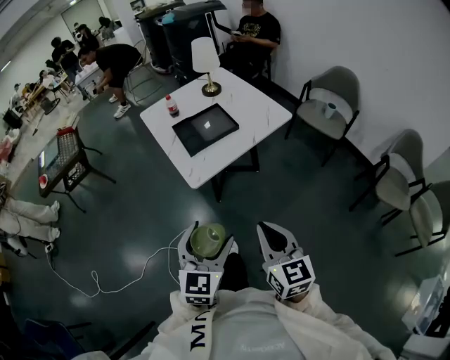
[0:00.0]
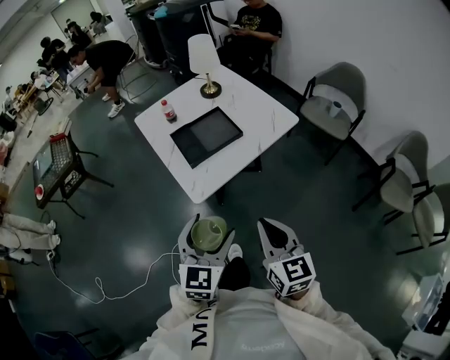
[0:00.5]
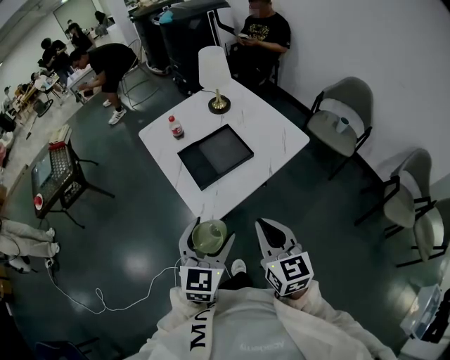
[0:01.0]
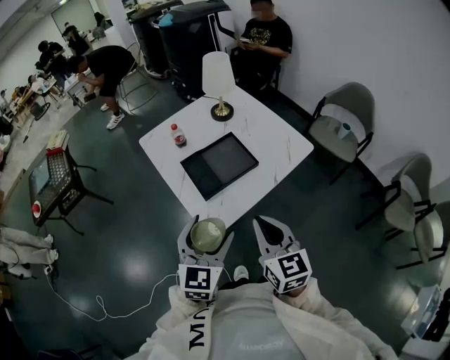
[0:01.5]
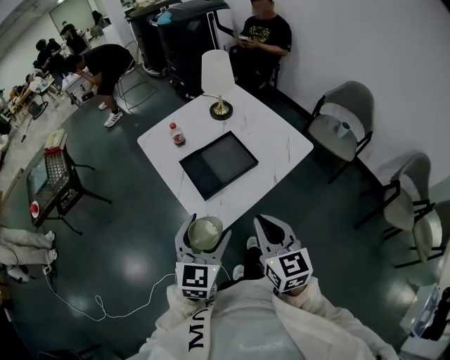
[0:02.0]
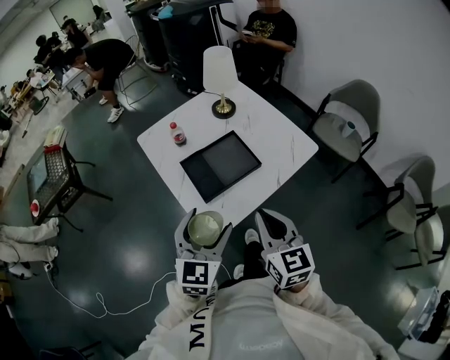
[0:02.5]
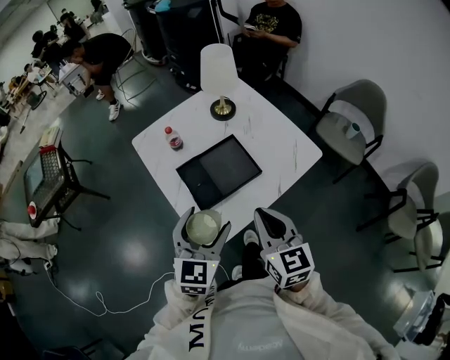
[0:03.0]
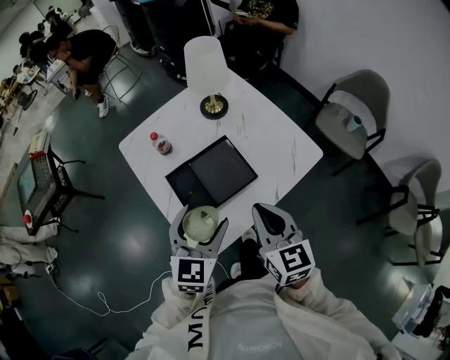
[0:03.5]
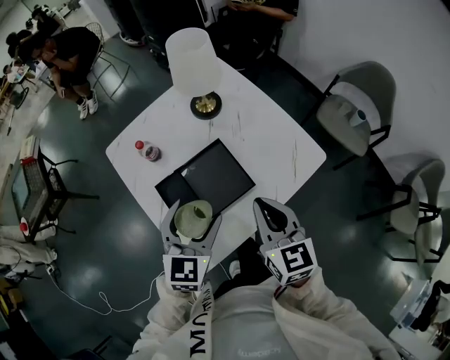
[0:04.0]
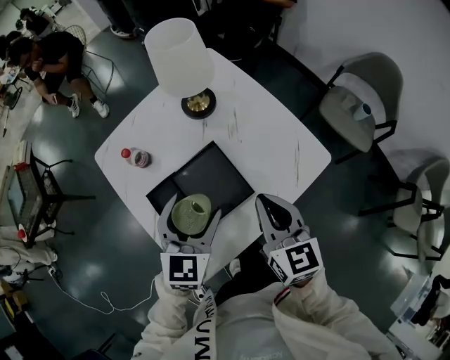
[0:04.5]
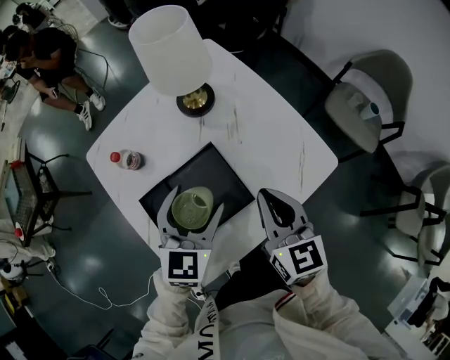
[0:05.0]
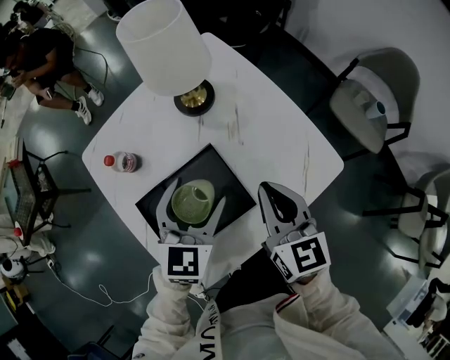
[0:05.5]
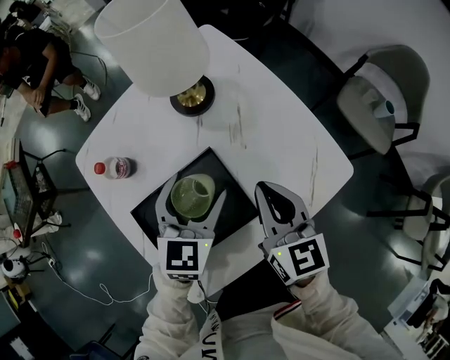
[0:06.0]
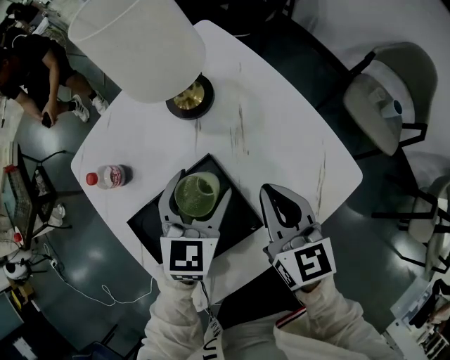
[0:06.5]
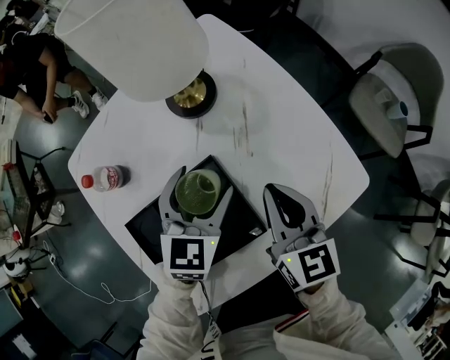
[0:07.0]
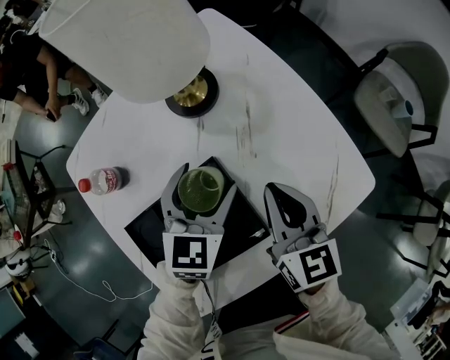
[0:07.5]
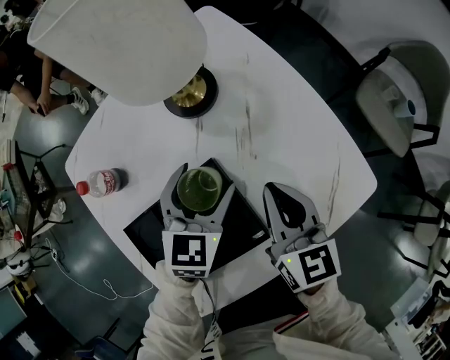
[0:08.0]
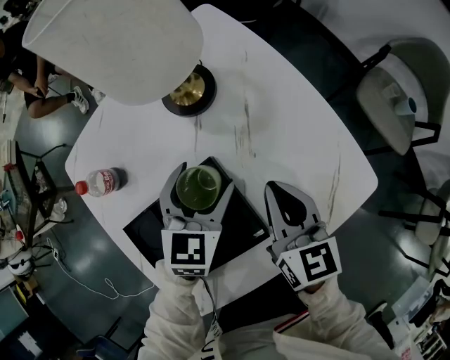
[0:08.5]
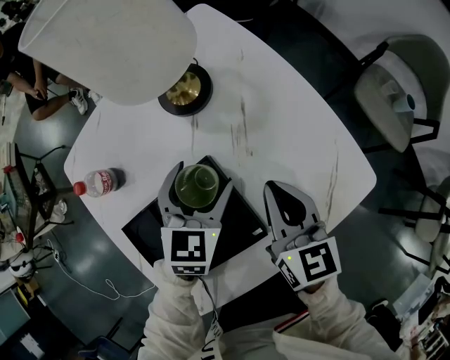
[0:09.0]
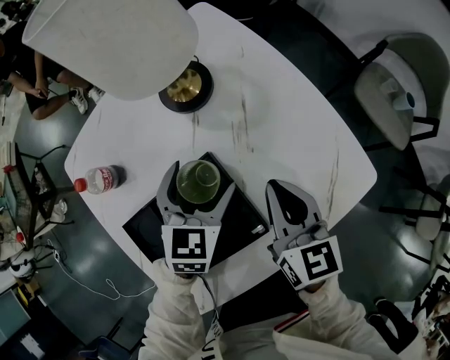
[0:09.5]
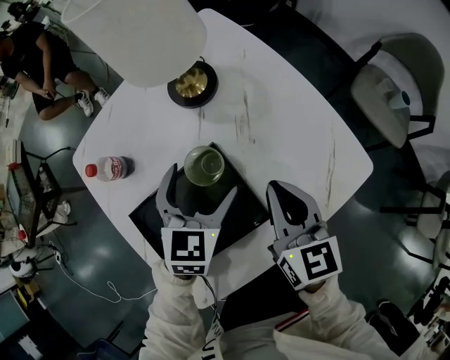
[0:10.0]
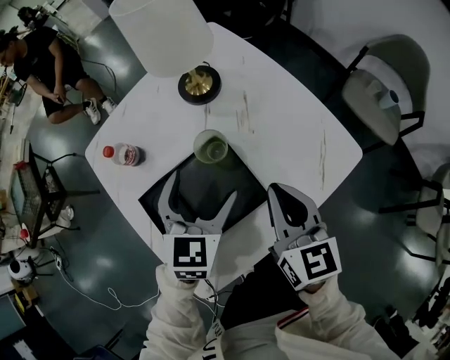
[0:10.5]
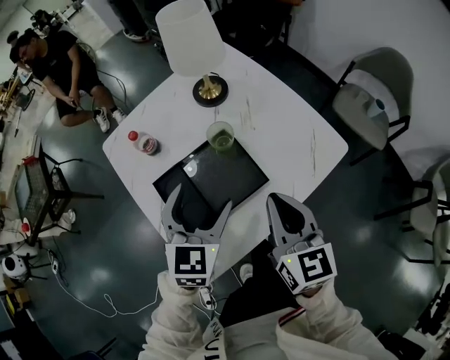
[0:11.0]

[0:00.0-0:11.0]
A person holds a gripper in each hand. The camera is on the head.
0:00.0 to 0:02.0: Both grippers travel together forward, roughly 25 cm.
0:02.0 to 0:03.5: Both grippers travel together forward, roughly 15 cm.
0:03.5 to 0:05.5: The grippers both shift forward and downward by about 20 cm.
0:05.5 to 0:07.5: Both grippers move downward and forward, roughly 10 cm.
0:07.5 to 0:09.0: There are only small adjustments of the grippers.
0:09.0 to 0:11.0: Both grippers travel together backward and upward, about 20 cm.

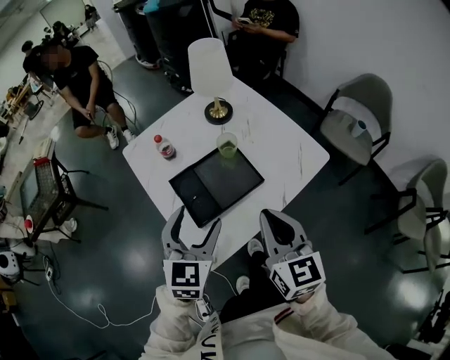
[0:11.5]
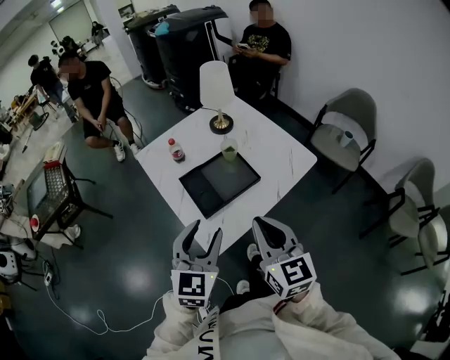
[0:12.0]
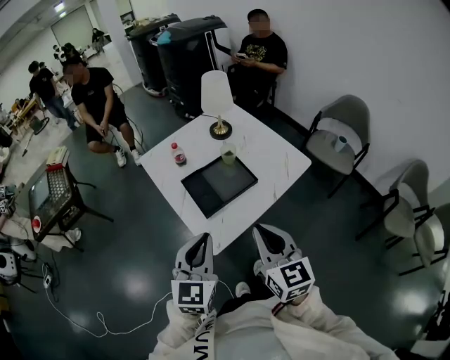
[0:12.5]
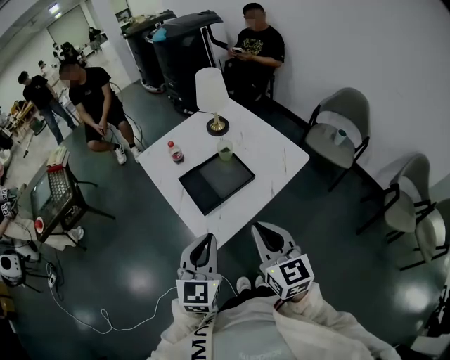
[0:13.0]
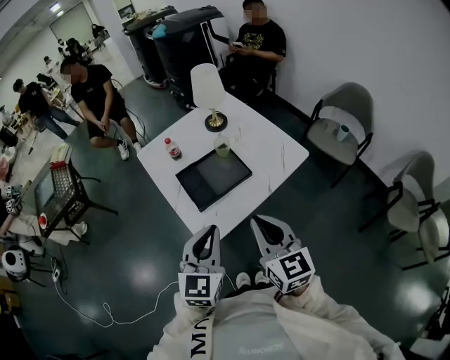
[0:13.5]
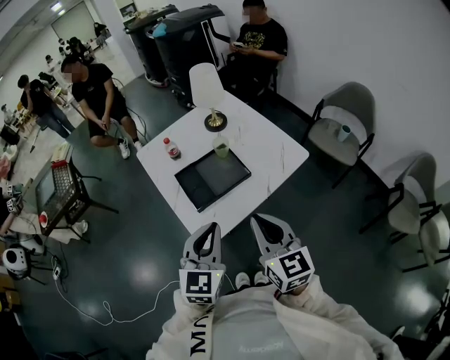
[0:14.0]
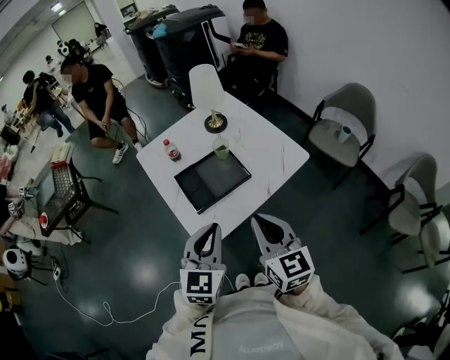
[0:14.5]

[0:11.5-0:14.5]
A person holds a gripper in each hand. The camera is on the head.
0:11.5 to 0:13.0: The two grippers go about 15 cm backward and upward. The left gripper closes its fingers.
0:13.0 to 0:14.5: The left gripper heads to the right, covering about 5 cm. Meanwhile the right gripper ends up roughly 5 cm from where it was.

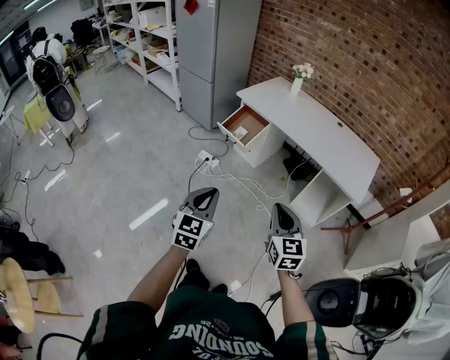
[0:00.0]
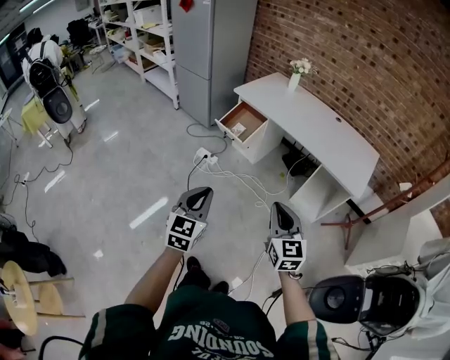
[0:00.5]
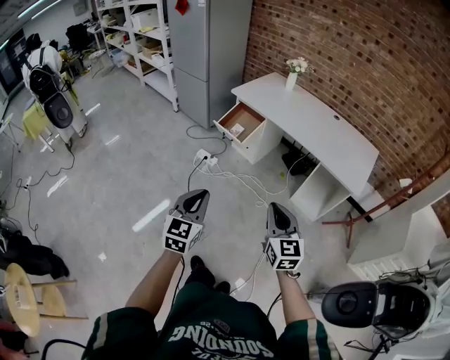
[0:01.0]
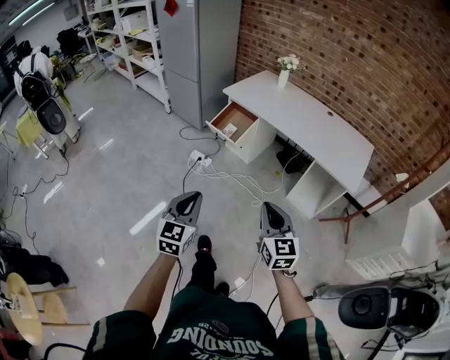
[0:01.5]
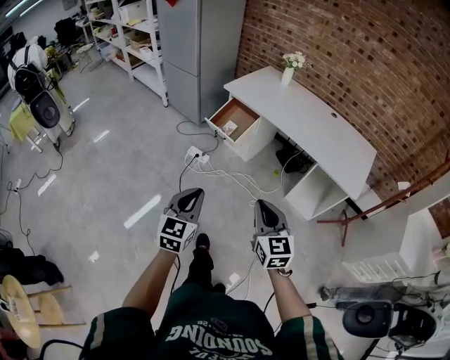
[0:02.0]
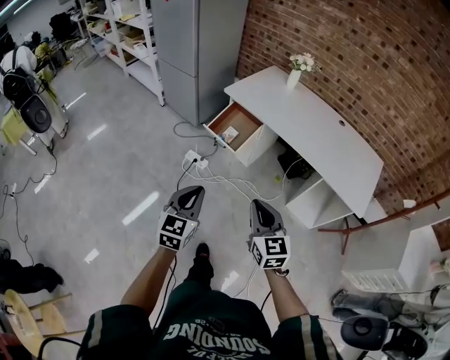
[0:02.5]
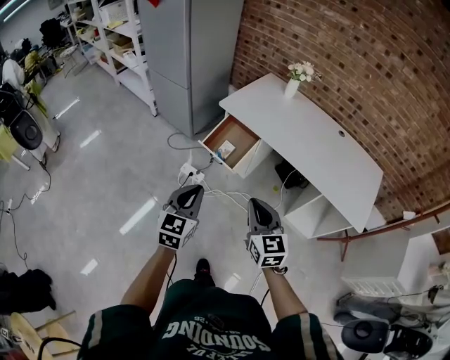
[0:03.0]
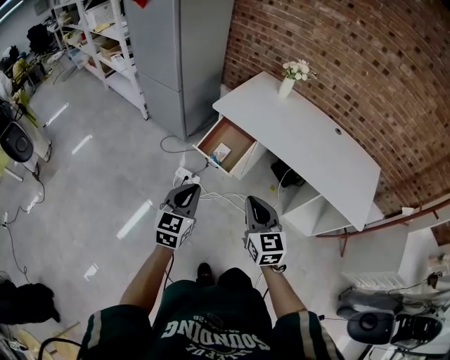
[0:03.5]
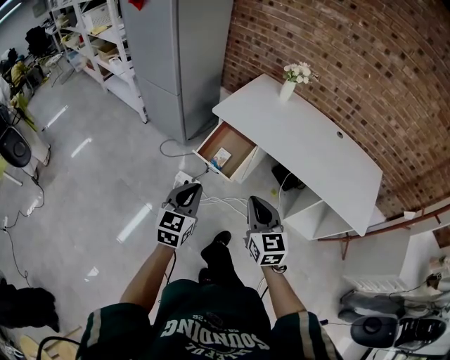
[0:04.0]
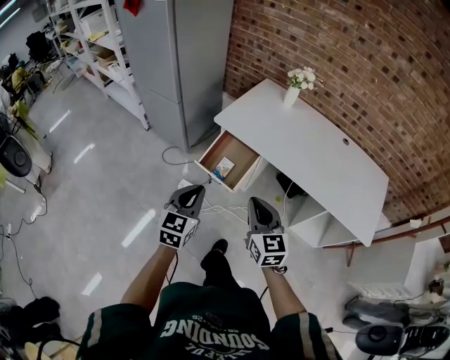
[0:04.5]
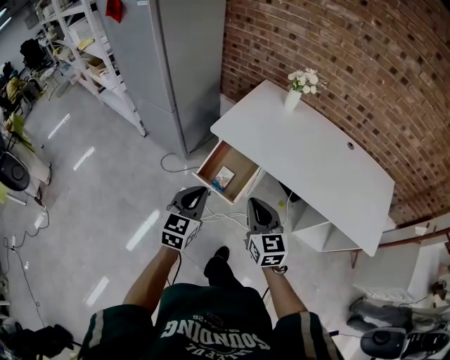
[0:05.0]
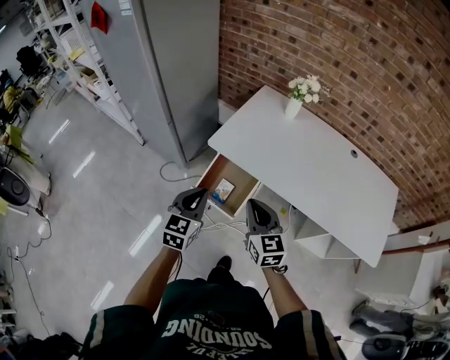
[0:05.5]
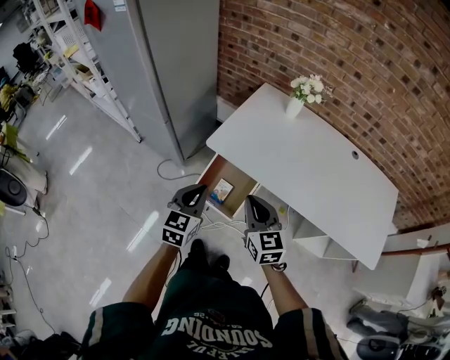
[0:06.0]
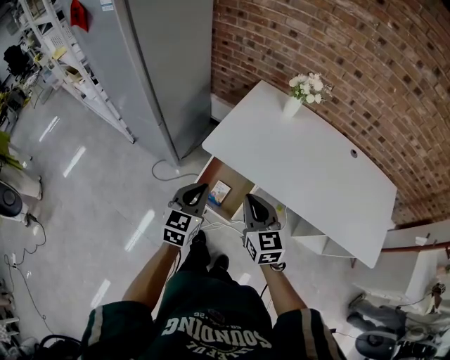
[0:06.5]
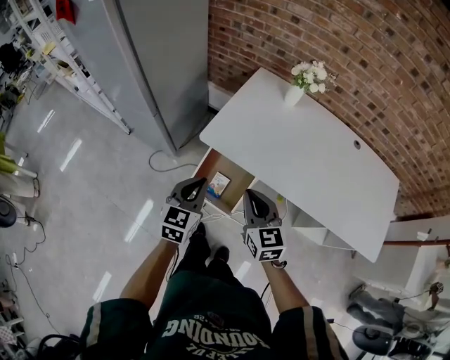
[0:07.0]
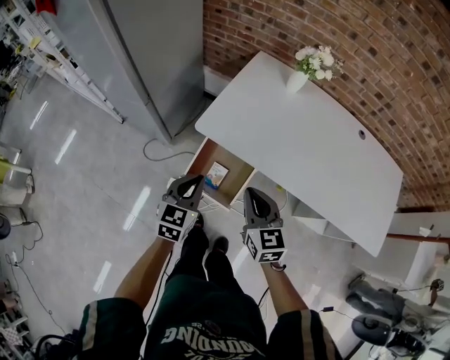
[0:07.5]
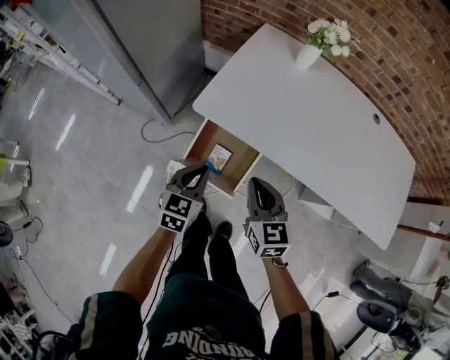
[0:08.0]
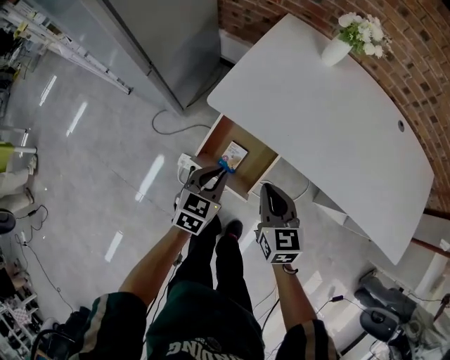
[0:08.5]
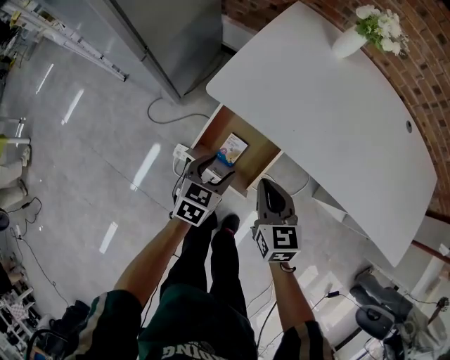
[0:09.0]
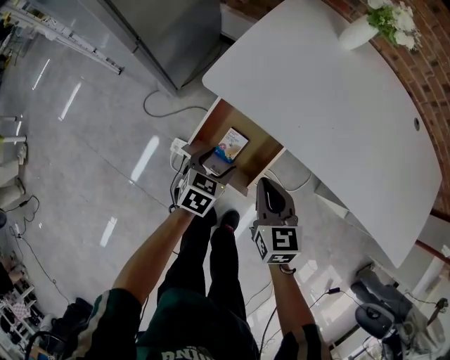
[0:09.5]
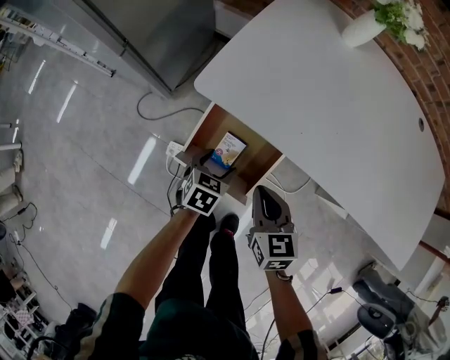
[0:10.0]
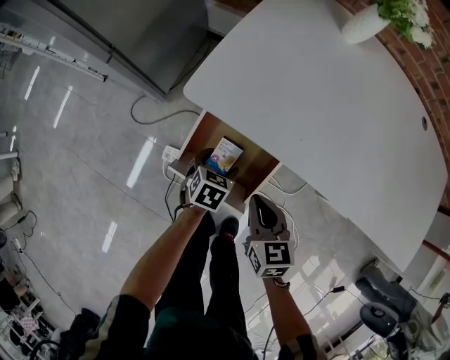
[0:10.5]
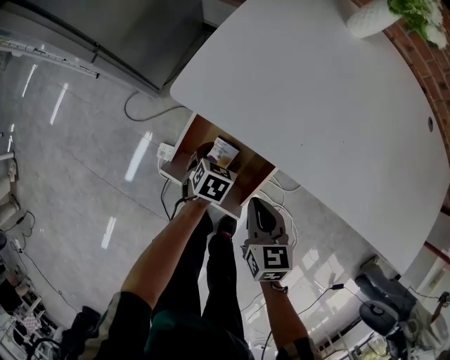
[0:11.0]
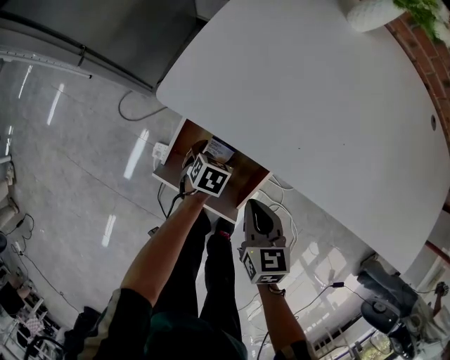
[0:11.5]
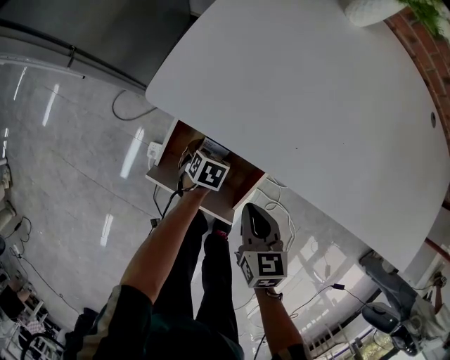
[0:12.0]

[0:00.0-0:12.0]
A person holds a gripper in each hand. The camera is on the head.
0:00.0 to 0:02.0: The right gripper shifts by about 5 cm. The left gripper changes place by approximately 5 cm.
0:02.0 to 0:04.0: The two grippers go about 35 cm forward.
0:04.0 to 0:06.0: The two grippers go roughly 25 cm forward.
0:06.0 to 0:08.0: Both grippers move downward and forward, some 15 cm.
0:08.0 to 0:10.0: The two grippers go approximately 20 cm downward. The left gripper swivels approximately 20 degrees, and opens.
0:10.0 to 0:12.0: The left gripper travels downward by approximately 15 cm. Meanwhile the right gripper is displaced downward by roughly 10 cm.

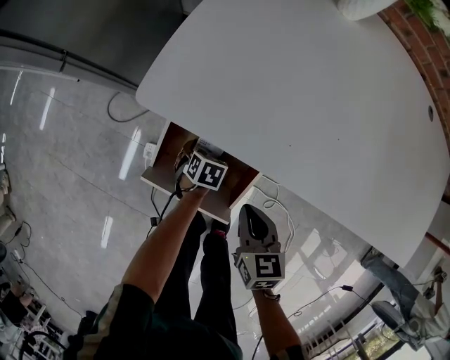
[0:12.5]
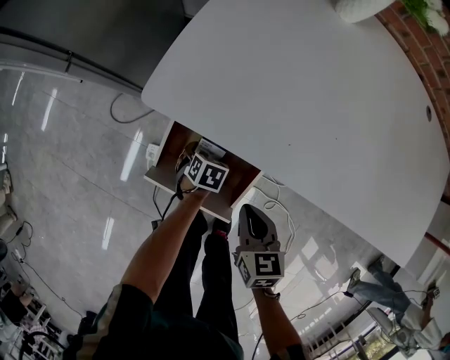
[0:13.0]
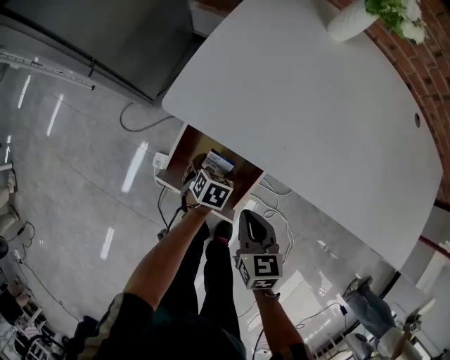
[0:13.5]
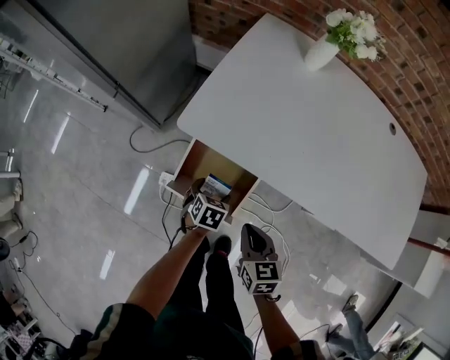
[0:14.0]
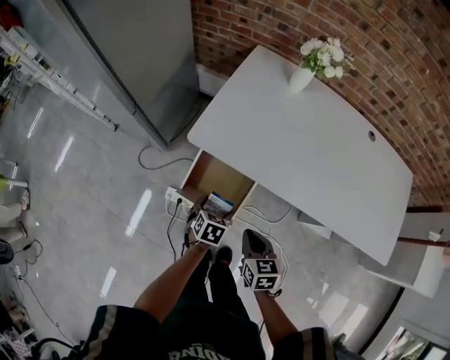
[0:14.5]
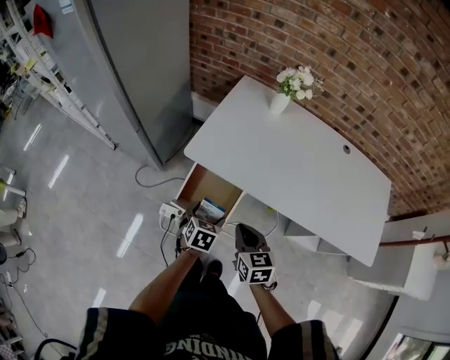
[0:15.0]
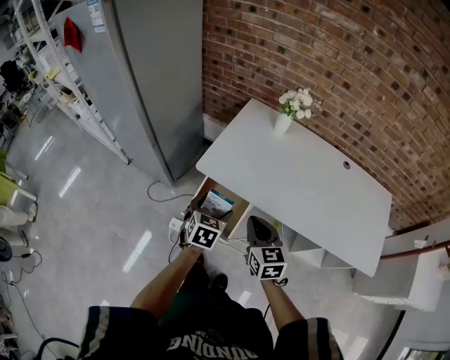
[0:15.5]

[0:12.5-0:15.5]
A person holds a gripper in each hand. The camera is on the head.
0:12.5 to 0:14.0: The left gripper moves upward, some 15 cm, while the right gripper heads upward, covering approximately 10 cm.
0:14.0 to 0:15.5: Both grippers travel together upward, approximately 25 cm. The left gripper turns by roughly 30 degrees; the right gripper changes its angle by about 20 degrees.
